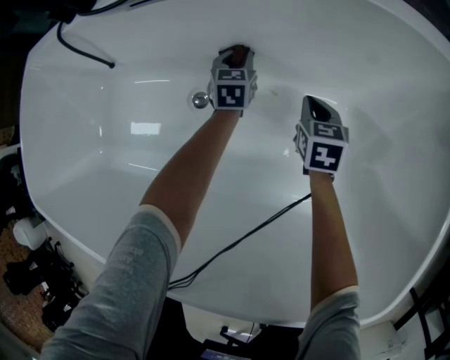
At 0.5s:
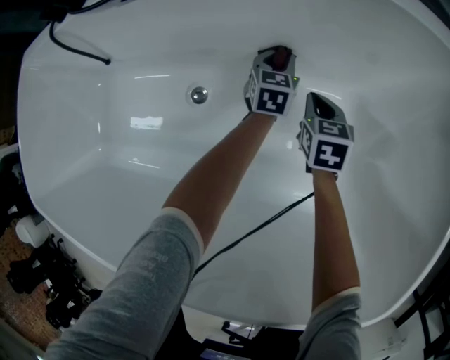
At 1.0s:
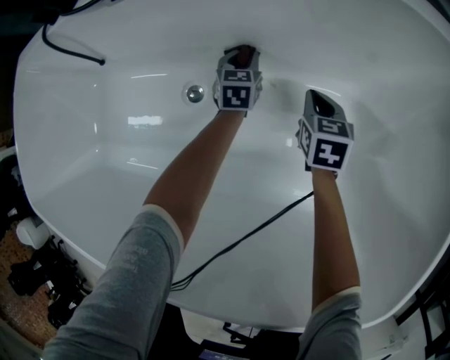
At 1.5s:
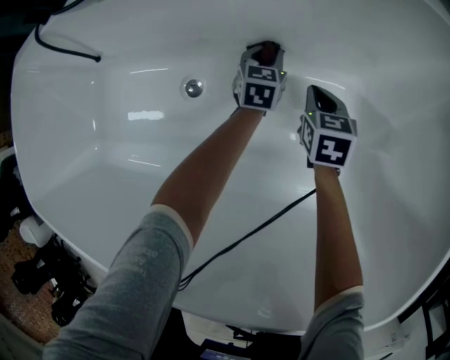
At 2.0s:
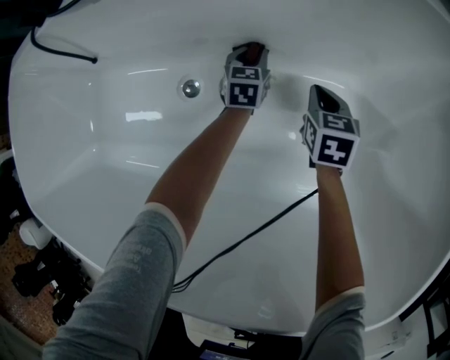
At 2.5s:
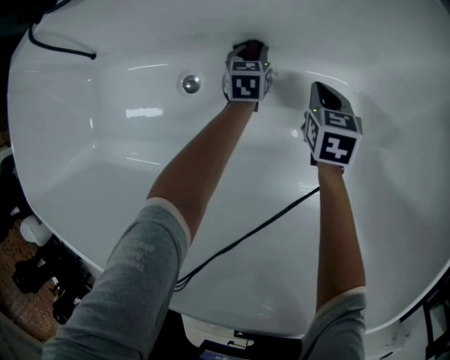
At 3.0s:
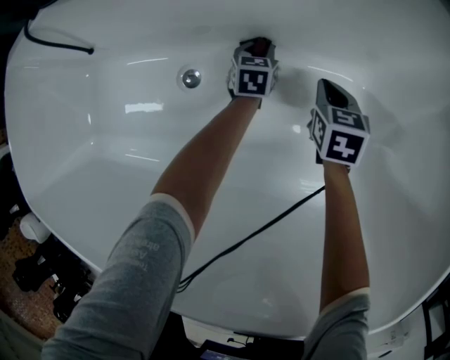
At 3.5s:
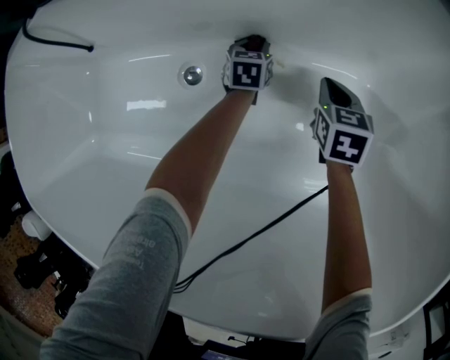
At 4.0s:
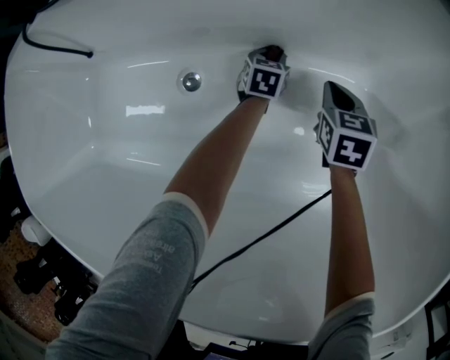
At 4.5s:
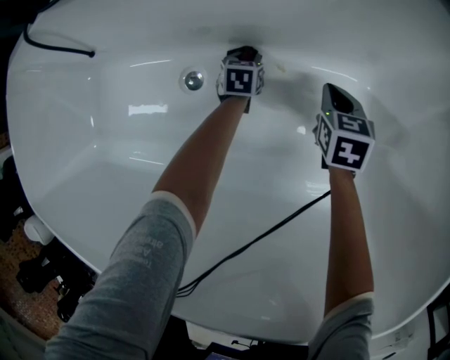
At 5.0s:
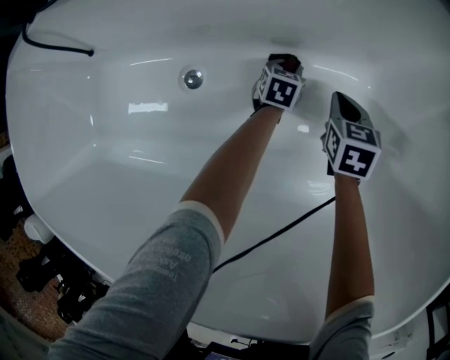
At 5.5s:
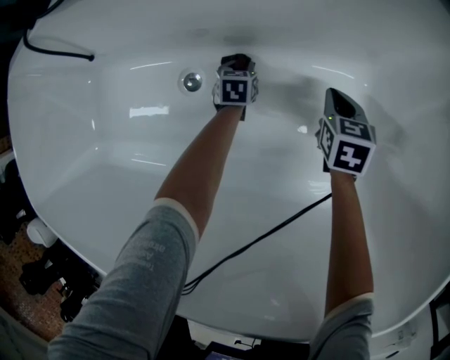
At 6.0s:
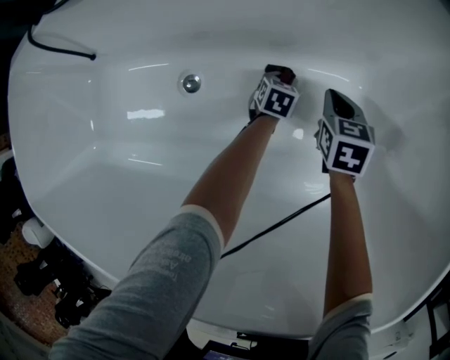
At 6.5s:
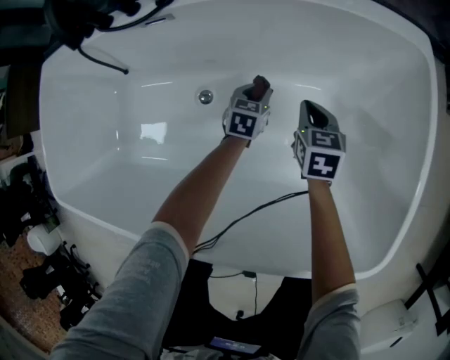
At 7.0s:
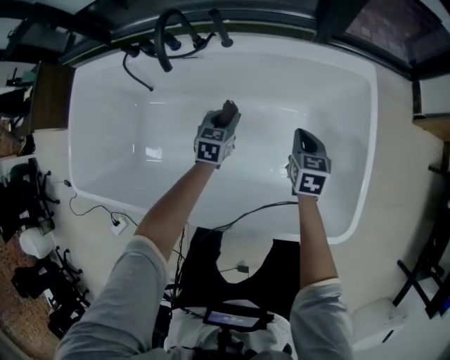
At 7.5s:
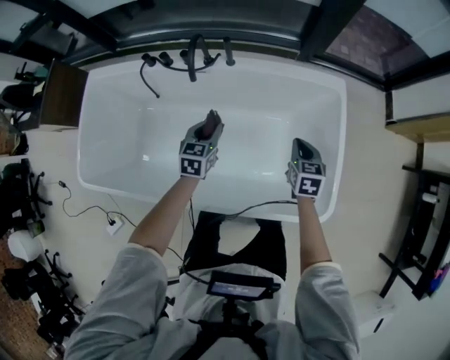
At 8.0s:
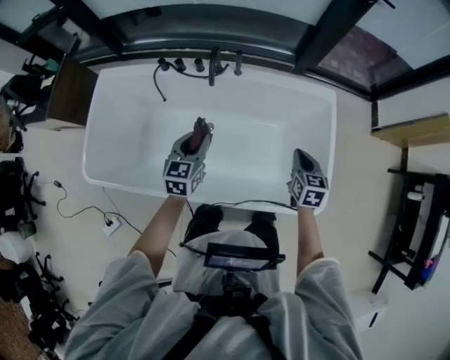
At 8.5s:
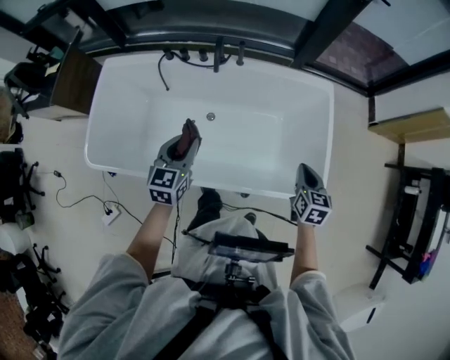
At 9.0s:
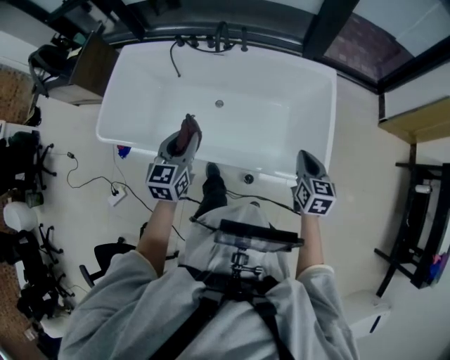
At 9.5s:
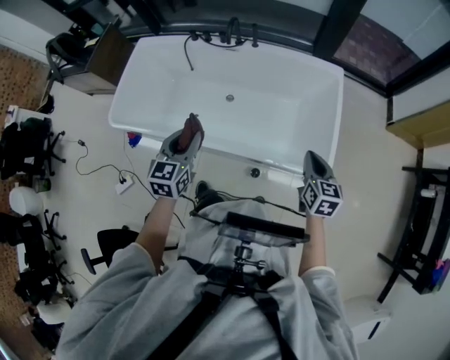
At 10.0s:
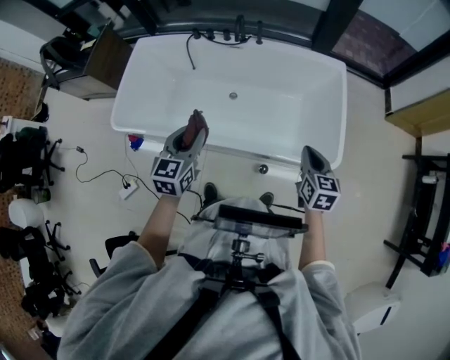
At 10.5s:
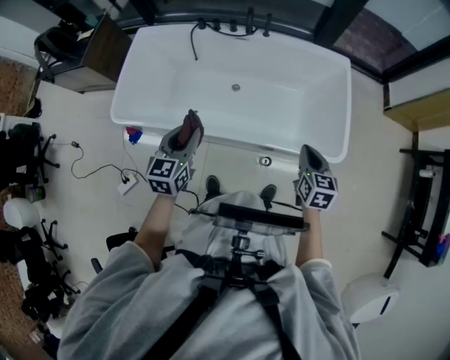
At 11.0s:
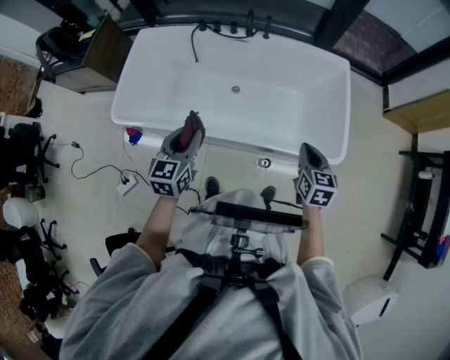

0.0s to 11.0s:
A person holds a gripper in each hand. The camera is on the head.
0.0s to 2.0s: The right gripper is displaced downward by about 5 cm, while the left gripper moves left and right over approximately 10 cm, changing direction 2 times.
2.0s to 3.5s: The left gripper goes roughly 5 cm downward.
3.5s to 5.5s: The left gripper goes left and right, roughly 10 cm each way, reversing 3 times.
5.5s to 7.5s: Both grippers move upward, about 60 cm. The left gripper swivels about 20 degrees.
7.5s to 9.0s: Both grippers travel together backward and upward, roughly 35 cm.
9.0s to 11.0s: The two grippers go about 15 cm to the left and backward.

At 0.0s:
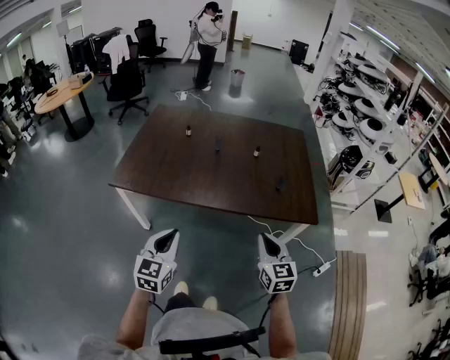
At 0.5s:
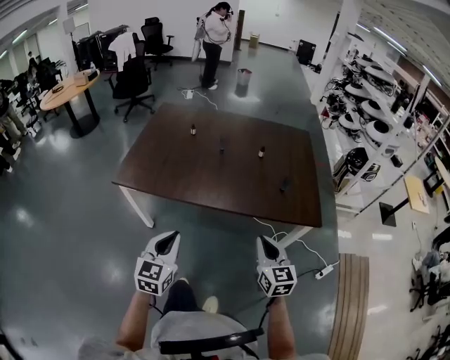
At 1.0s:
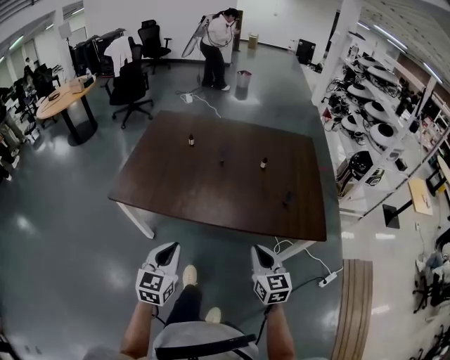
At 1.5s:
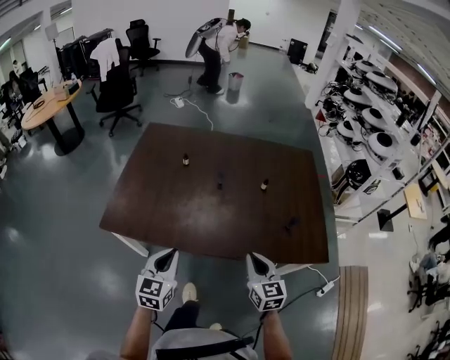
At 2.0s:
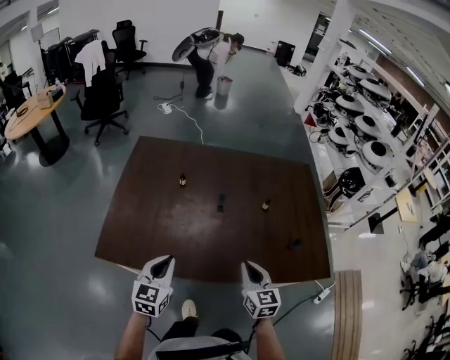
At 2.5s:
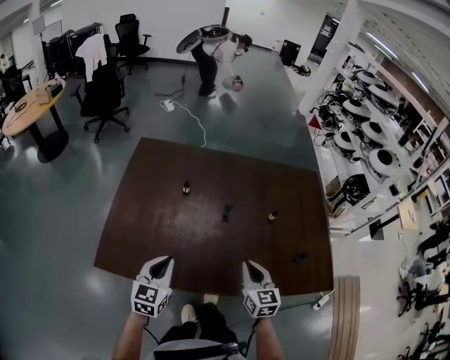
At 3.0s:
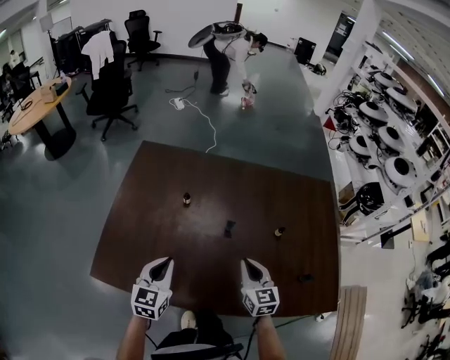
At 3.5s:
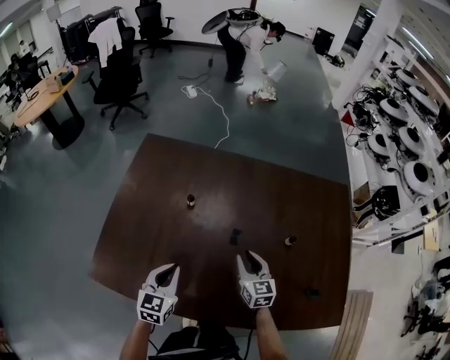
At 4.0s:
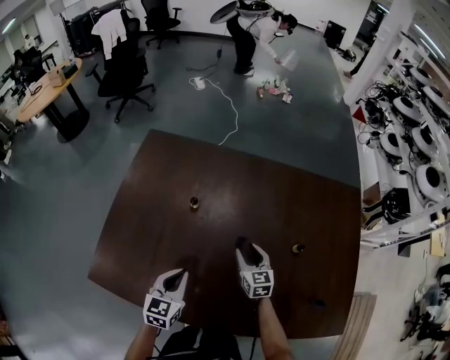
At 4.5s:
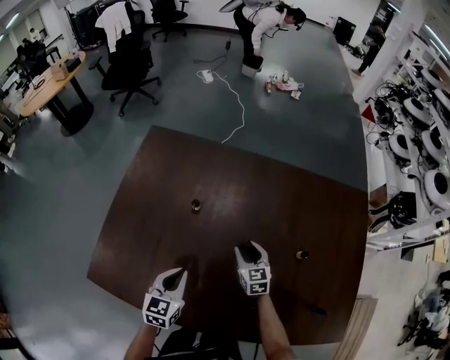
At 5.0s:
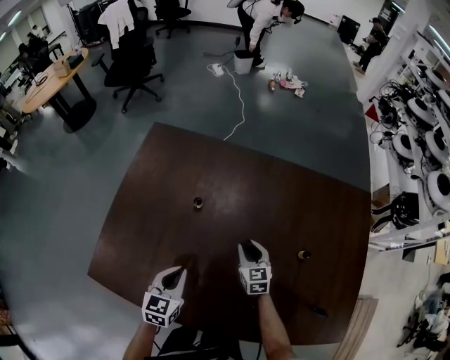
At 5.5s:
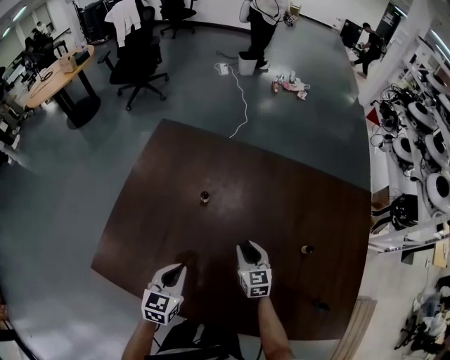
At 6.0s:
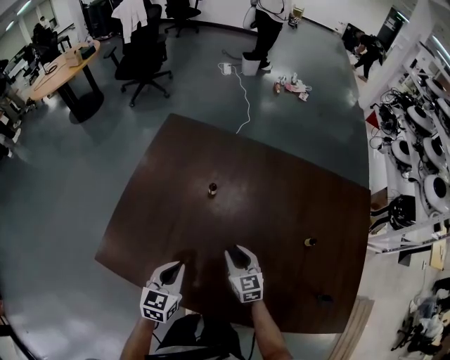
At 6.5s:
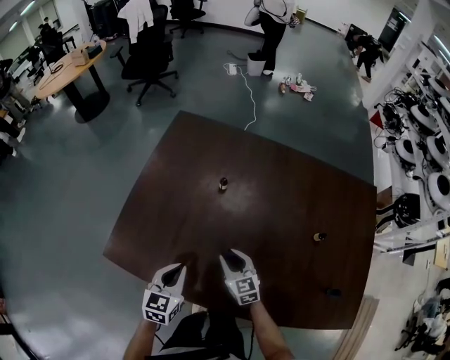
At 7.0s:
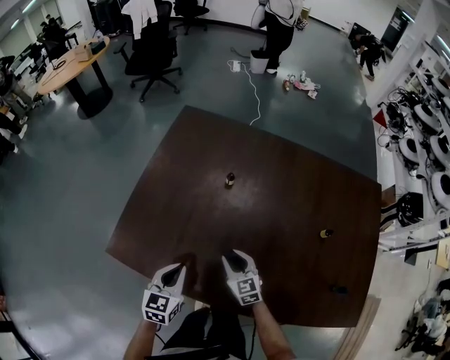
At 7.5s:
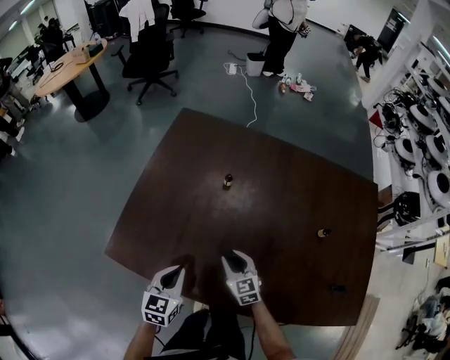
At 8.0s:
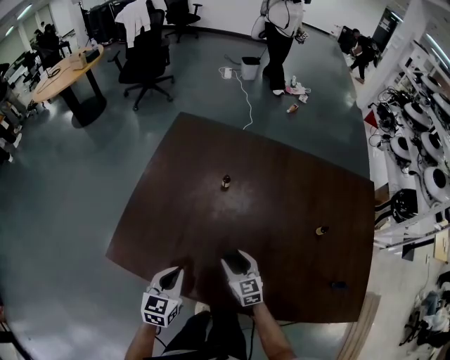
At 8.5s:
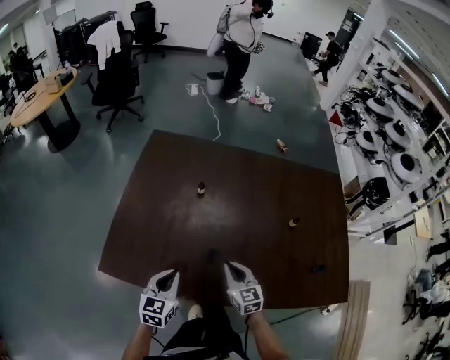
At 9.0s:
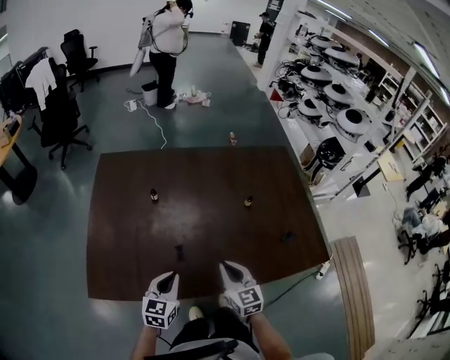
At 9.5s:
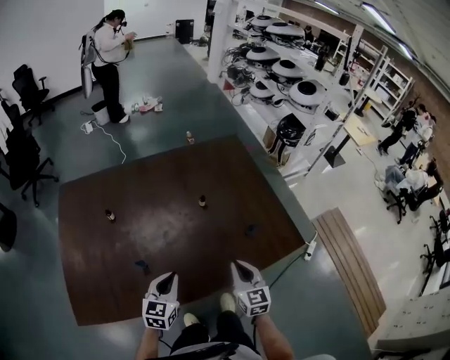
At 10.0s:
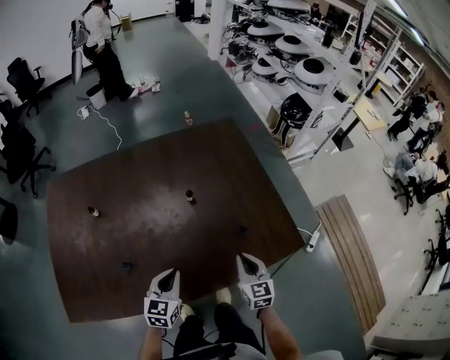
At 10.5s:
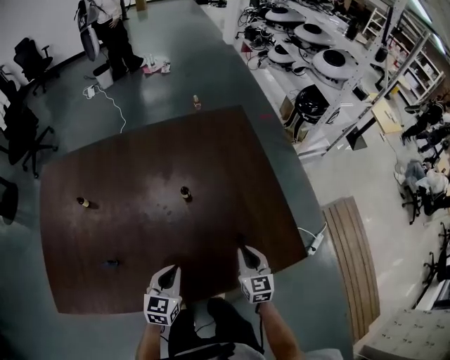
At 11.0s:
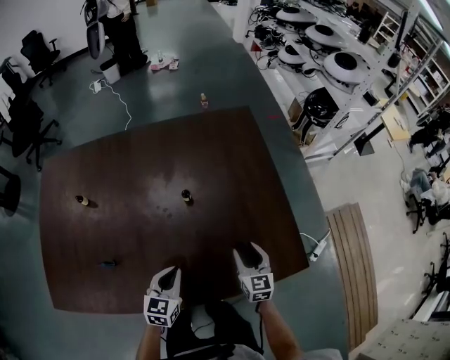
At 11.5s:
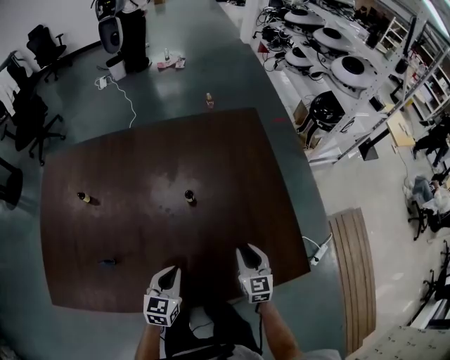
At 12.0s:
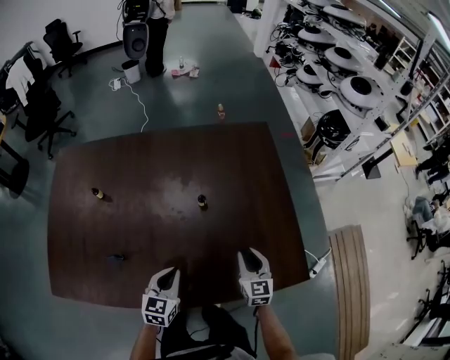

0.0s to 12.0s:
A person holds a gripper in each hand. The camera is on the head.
0.0s to 2.0s: The left gripper goes some 25 cm forward. Meanwhile the right gripper heads forward and to the left, covering some 25 cm.
2.0s to 4.0s: The right gripper is displaced forward and downward by approximately 35 cm, and opens up, while the left gripper is displaced forward and downward by approximately 20 cm.
4.0s to 6.0s: The left gripper moves to the left, about 5 cm. Meanwhile the right gripper travels to the left and backward by about 10 cm.
6.0s to 8.0s: The left gripper goes approximately 5 cm to the left, while the right gripper heads to the left and backward, covering roughly 10 cm, and opens.
8.0s to 10.0s: The left gripper ends up about 30 cm from where it was, and rotates some 30 degrees. The right gripper ends up approximately 40 cm from where it was, rotates roughly 50 degrees, and closes its fingers.
10.0s to 12.0s: The right gripper shifts roughly 10 cm forward, and opens.

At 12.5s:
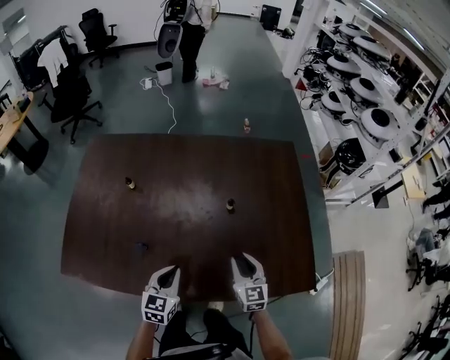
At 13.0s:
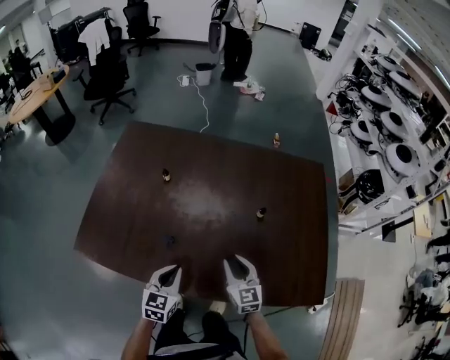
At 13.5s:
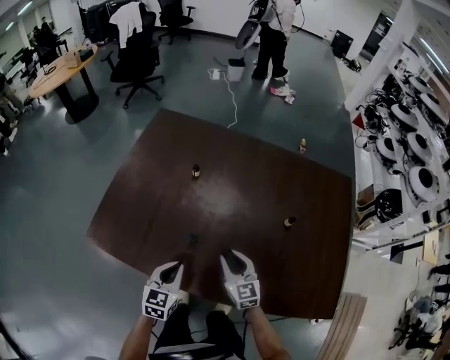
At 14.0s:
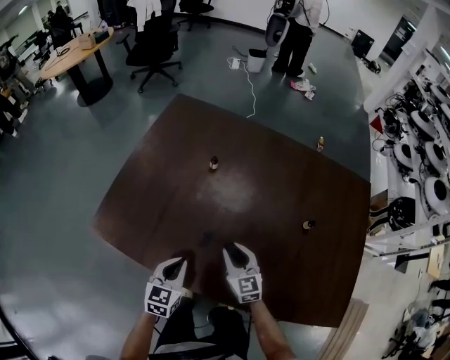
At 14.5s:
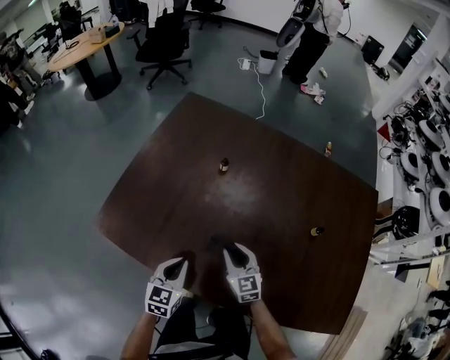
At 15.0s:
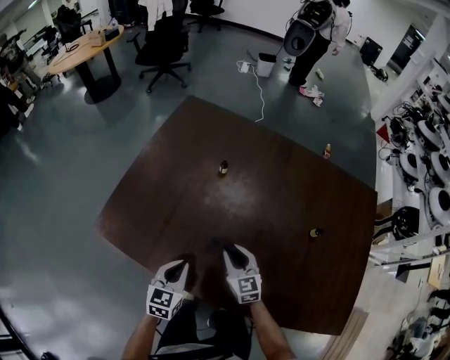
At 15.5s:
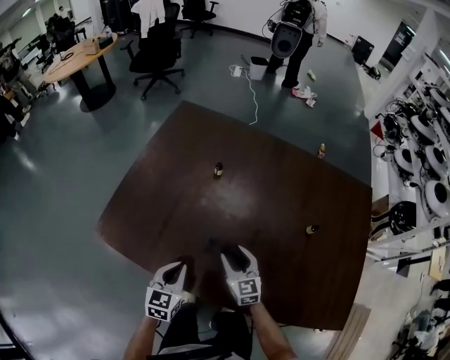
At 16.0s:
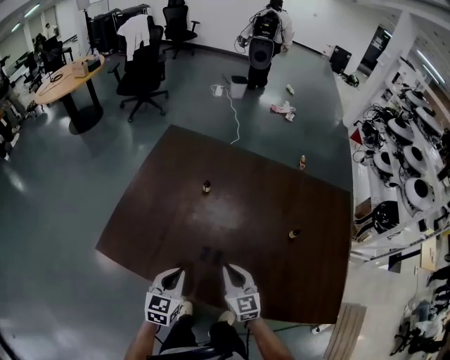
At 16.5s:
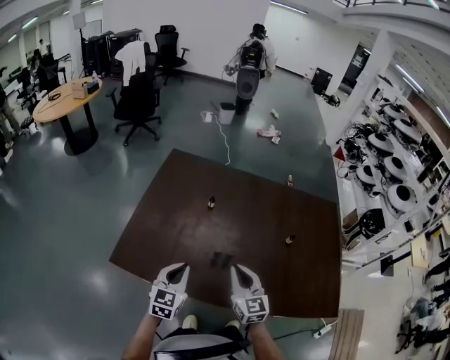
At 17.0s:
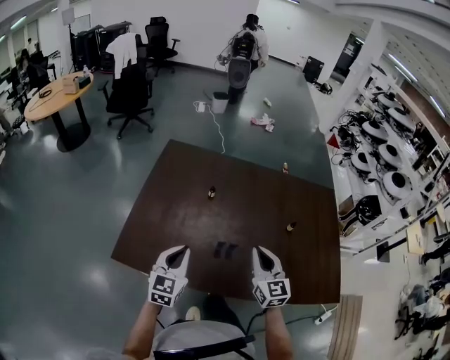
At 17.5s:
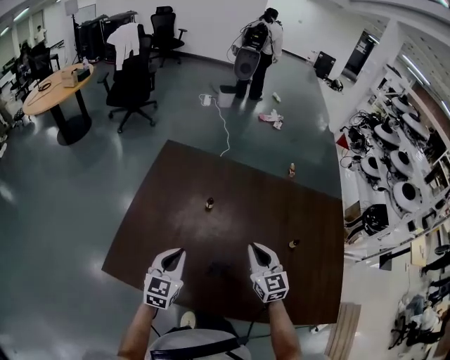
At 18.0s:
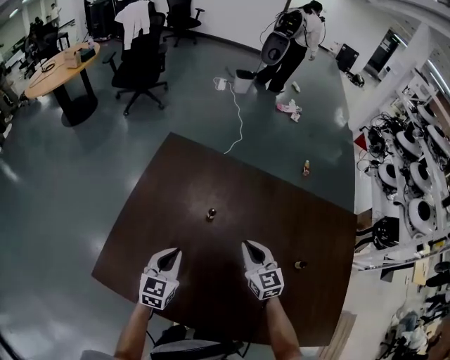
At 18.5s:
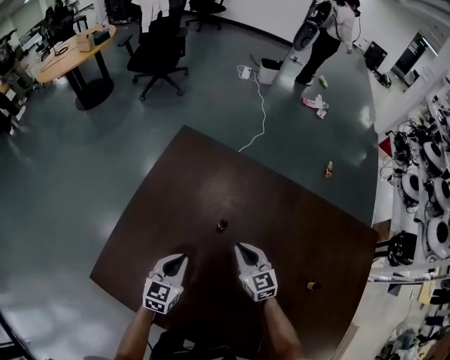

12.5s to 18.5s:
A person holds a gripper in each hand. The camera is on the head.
12.5s to 14.5s: The left gripper shifts by some 20 cm, and turns by roughly 20 degrees; the right gripper moves approximately 30 cm, and turns by some 30 degrees.
14.5s to 16.5s: Both grippers move upward, about 15 cm. The right gripper turns by about 20 degrees, and closes.
16.5s to 18.5s: Both grippers move forward and downward, some 25 cm. The right gripper rotates about 20 degrees.
